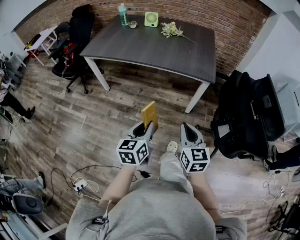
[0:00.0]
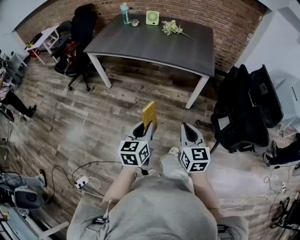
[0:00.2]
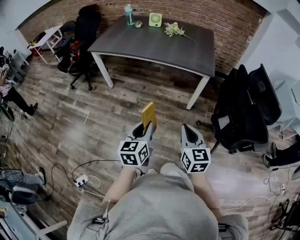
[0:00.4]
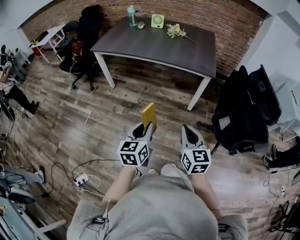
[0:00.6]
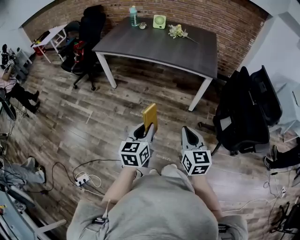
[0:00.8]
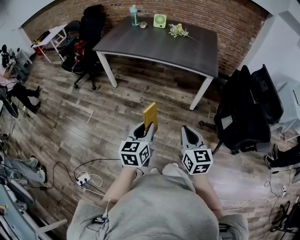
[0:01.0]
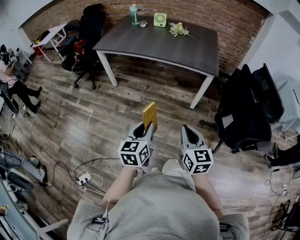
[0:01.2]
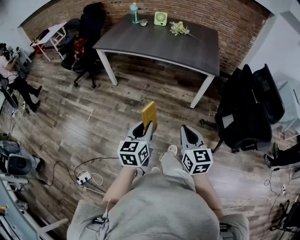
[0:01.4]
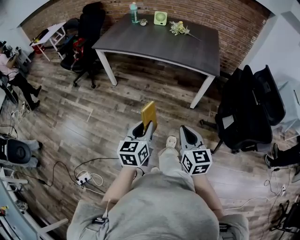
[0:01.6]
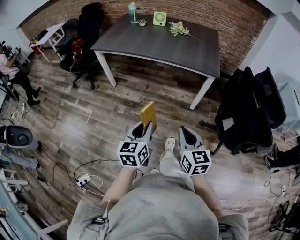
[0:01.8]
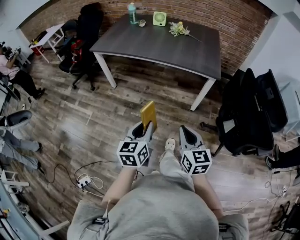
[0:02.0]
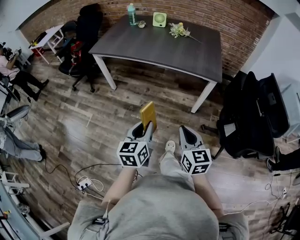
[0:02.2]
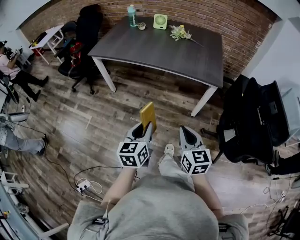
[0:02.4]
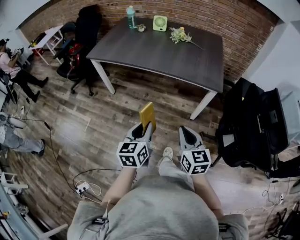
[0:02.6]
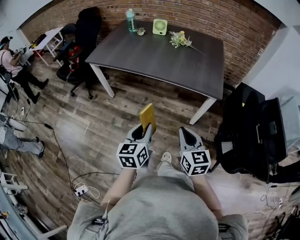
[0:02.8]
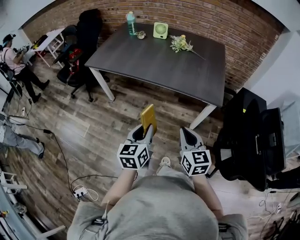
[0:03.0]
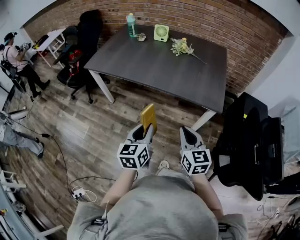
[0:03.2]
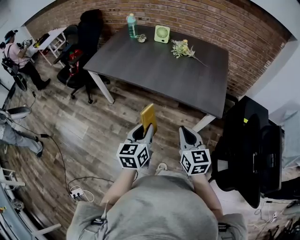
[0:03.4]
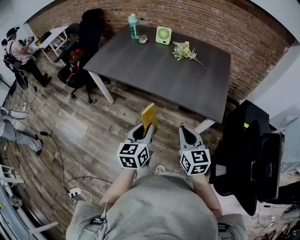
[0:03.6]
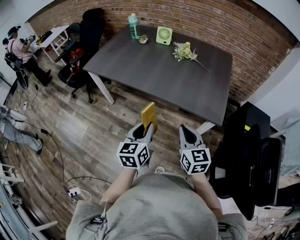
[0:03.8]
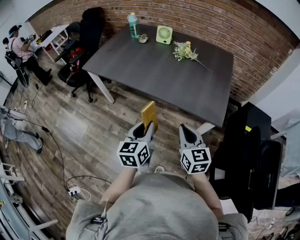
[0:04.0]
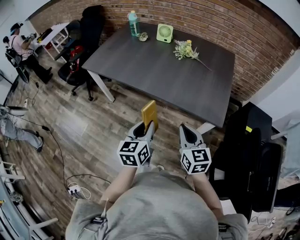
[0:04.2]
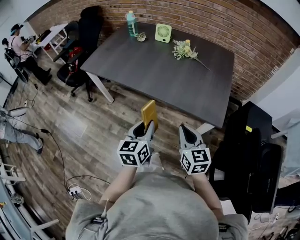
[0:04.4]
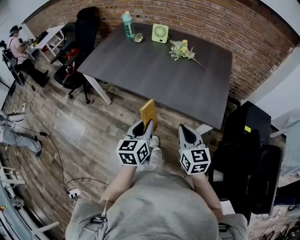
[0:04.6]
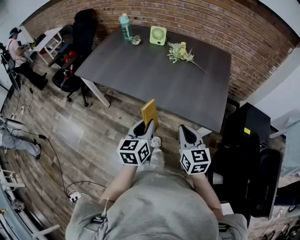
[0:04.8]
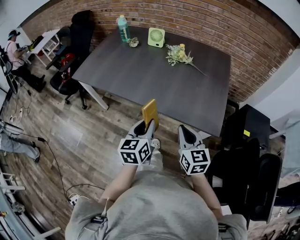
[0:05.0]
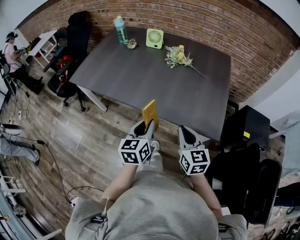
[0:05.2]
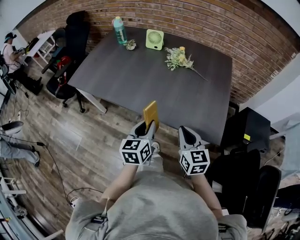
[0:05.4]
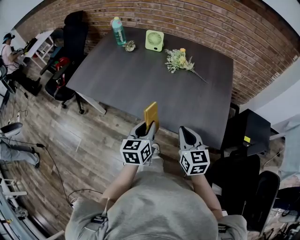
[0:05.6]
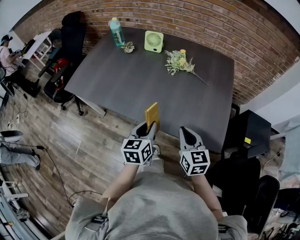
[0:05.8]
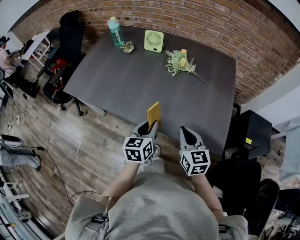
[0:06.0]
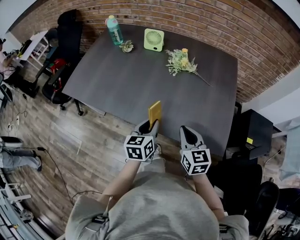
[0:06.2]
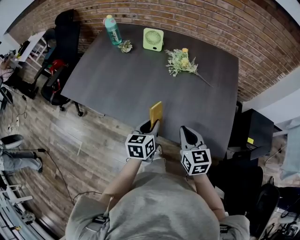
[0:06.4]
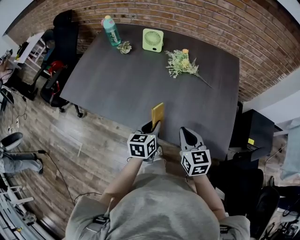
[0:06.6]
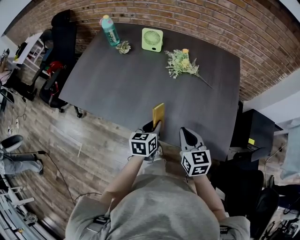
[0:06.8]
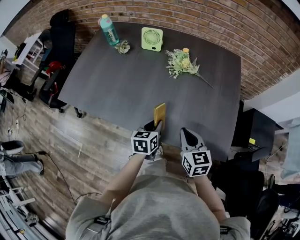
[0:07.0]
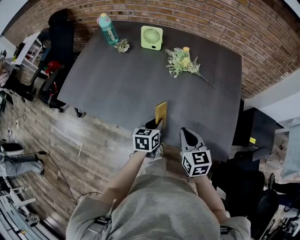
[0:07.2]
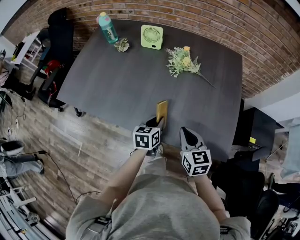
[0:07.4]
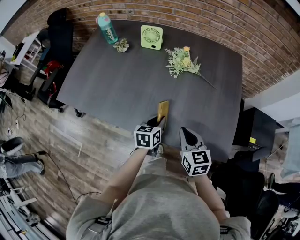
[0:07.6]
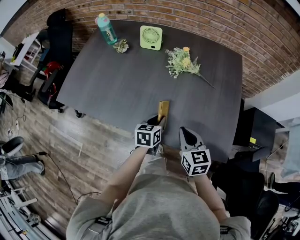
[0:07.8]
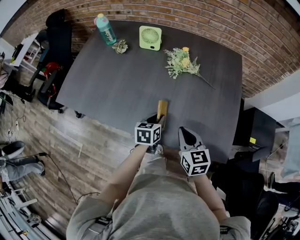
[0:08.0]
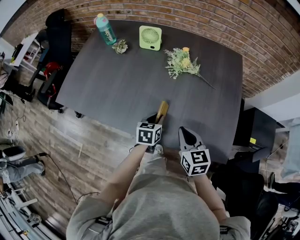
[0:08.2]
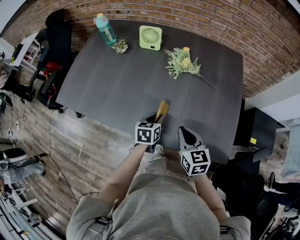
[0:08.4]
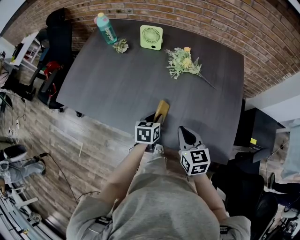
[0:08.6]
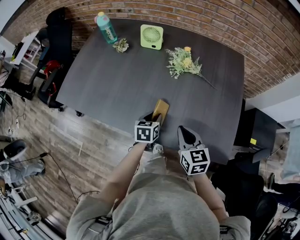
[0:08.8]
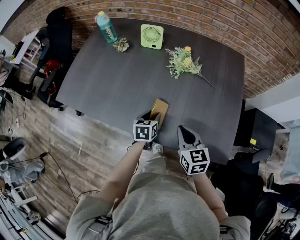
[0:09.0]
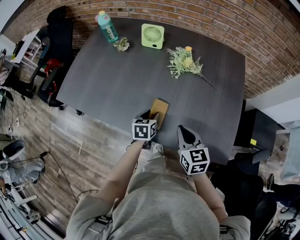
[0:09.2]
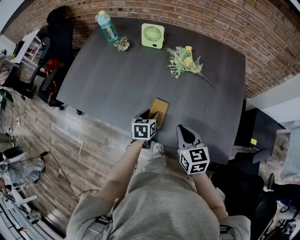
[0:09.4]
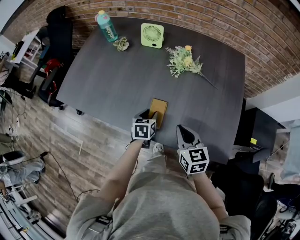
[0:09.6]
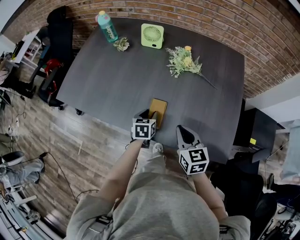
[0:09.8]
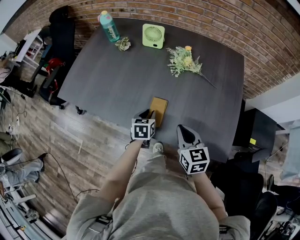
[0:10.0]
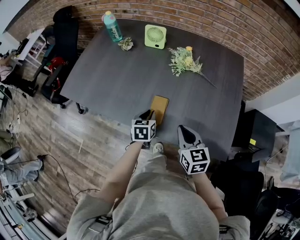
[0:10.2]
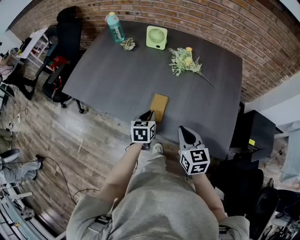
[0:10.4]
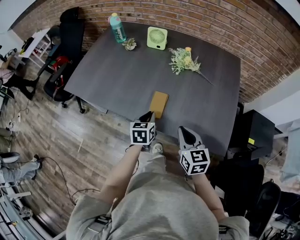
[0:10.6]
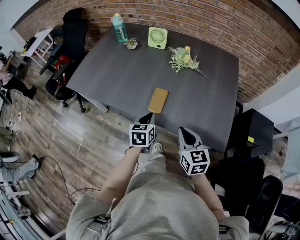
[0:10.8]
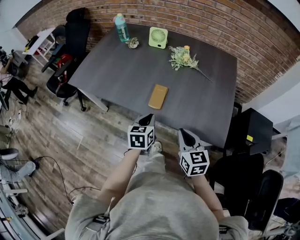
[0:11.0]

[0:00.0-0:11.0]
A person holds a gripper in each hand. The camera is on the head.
0:00.0 to 0:01.6: Both grippers move backward and to the left, roughly 15 cm.
0:01.6 to 0:03.2: The grippers both shift forward by about 25 cm.
0:03.2 to 0:04.8: Both grippers move forward and to the right, approximately 15 cm.
0:04.8 to 0:06.2: The grippers both shift forward by roughly 20 cm.
0:06.2 to 0:07.8: The right gripper moves forward, roughly 5 cm; the left gripper moves forward and downward, about 15 cm.
0:07.8 to 0:09.4: The left gripper is displaced to the left by some 5 cm, and opens its fingers.
0:09.4 to 0:11.0: The left gripper is displaced backward and upward by roughly 20 cm, and closes its fingers, while the right gripper heads backward, covering roughly 15 cm.

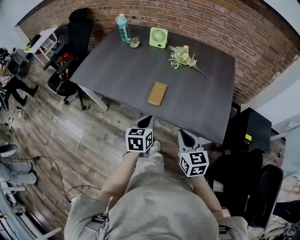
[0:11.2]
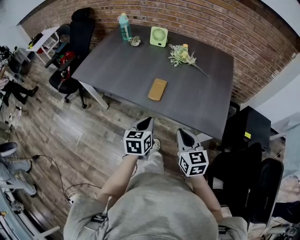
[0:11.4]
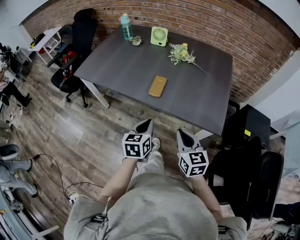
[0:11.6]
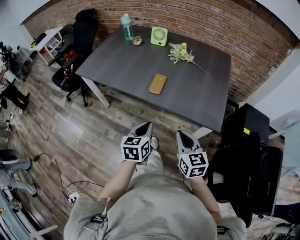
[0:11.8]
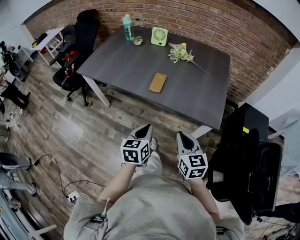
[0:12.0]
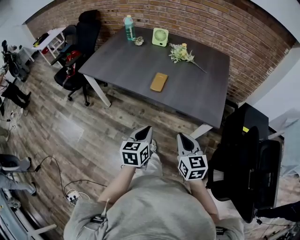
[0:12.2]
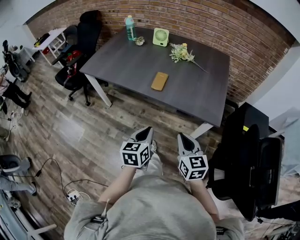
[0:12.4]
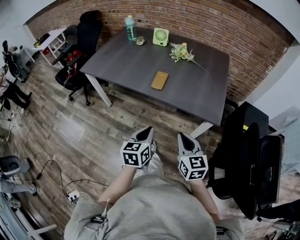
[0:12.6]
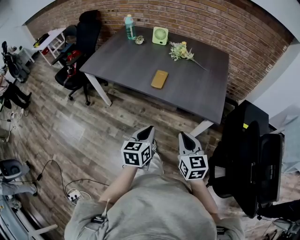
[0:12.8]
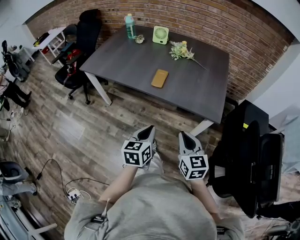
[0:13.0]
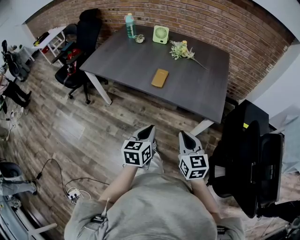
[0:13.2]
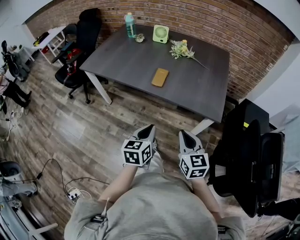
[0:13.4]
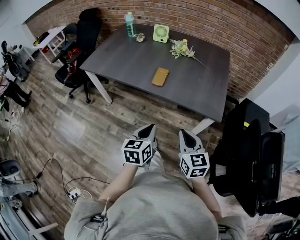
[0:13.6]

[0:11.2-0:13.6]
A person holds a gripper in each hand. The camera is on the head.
0:11.2 to 0:12.4: Both grippers move backward, about 15 cm.
0:12.4 to 0:13.6: The grippers move only a little.

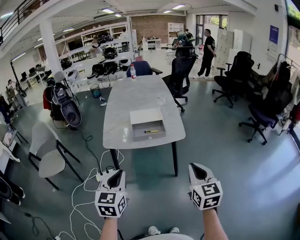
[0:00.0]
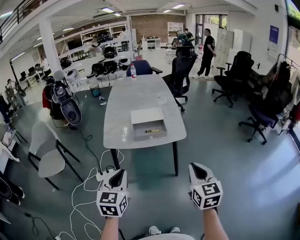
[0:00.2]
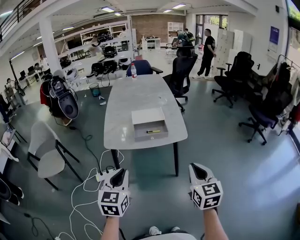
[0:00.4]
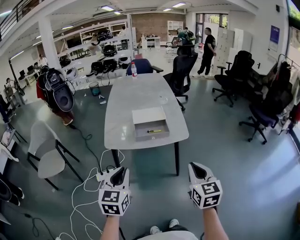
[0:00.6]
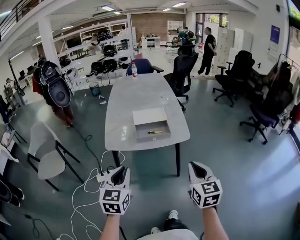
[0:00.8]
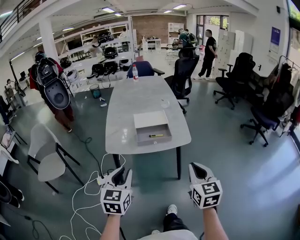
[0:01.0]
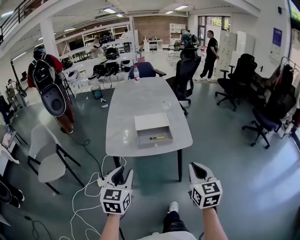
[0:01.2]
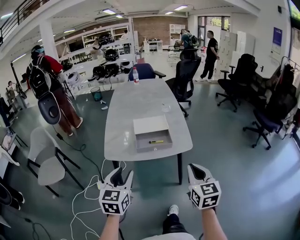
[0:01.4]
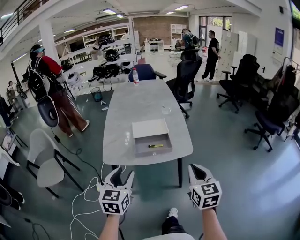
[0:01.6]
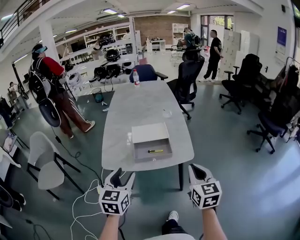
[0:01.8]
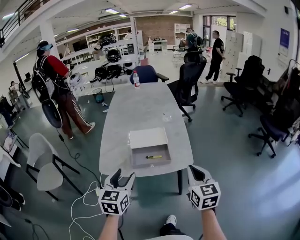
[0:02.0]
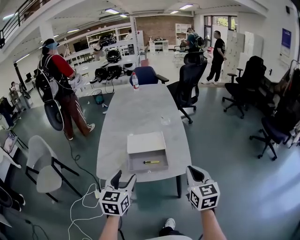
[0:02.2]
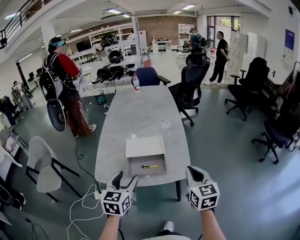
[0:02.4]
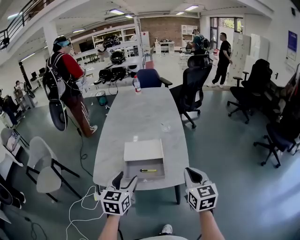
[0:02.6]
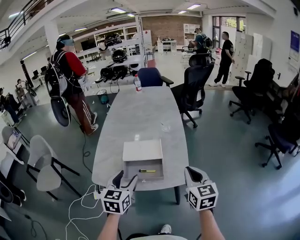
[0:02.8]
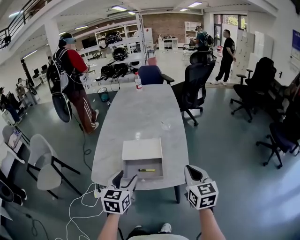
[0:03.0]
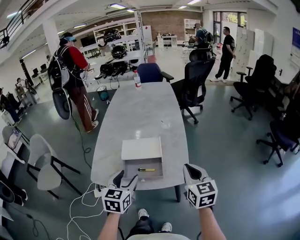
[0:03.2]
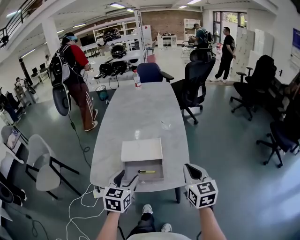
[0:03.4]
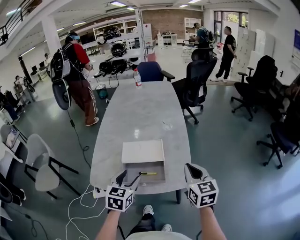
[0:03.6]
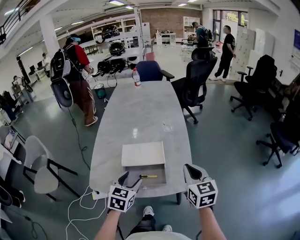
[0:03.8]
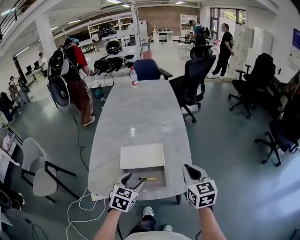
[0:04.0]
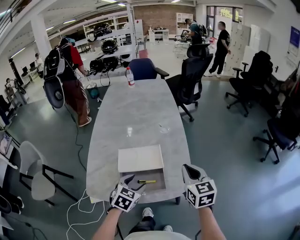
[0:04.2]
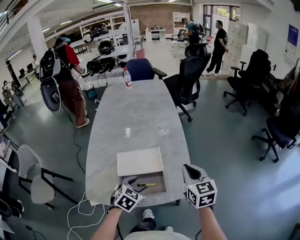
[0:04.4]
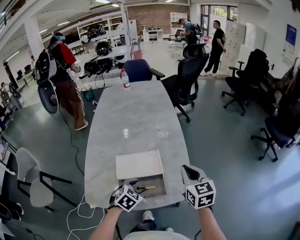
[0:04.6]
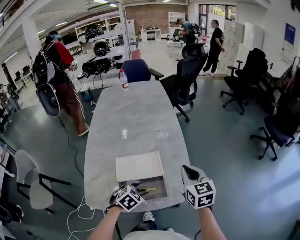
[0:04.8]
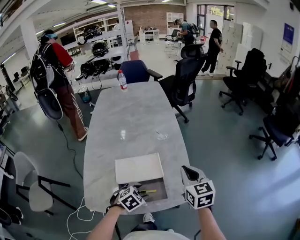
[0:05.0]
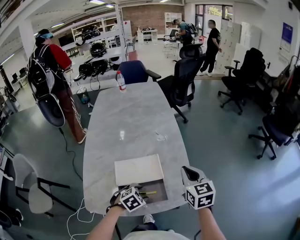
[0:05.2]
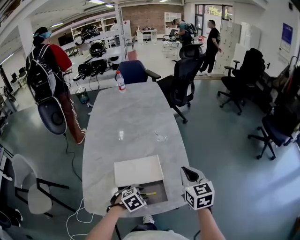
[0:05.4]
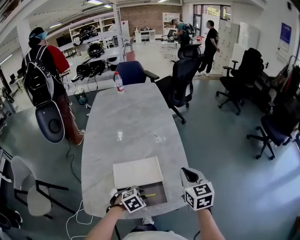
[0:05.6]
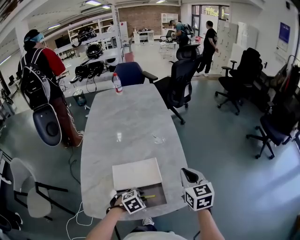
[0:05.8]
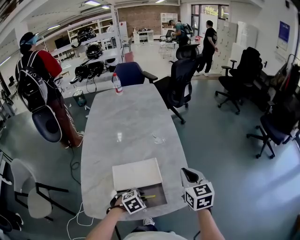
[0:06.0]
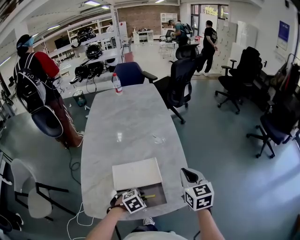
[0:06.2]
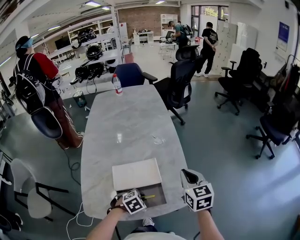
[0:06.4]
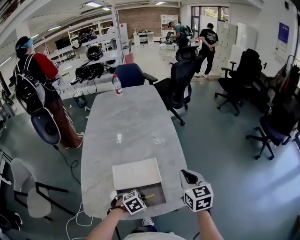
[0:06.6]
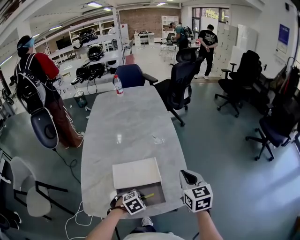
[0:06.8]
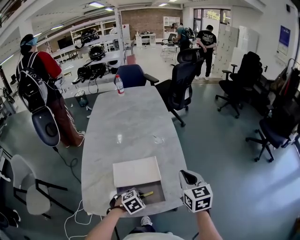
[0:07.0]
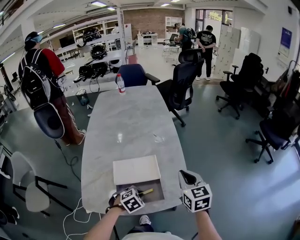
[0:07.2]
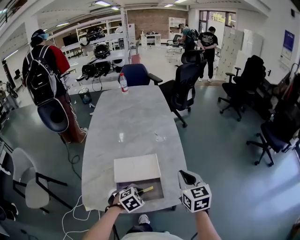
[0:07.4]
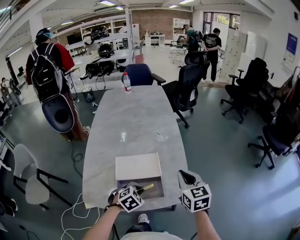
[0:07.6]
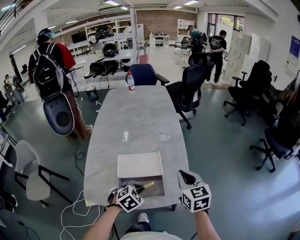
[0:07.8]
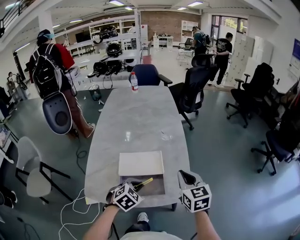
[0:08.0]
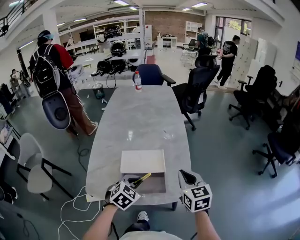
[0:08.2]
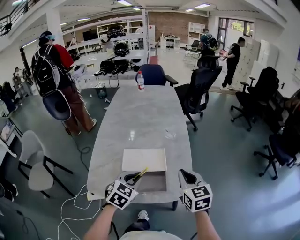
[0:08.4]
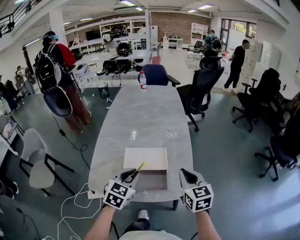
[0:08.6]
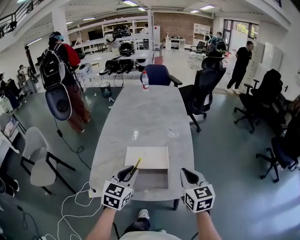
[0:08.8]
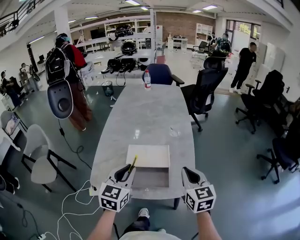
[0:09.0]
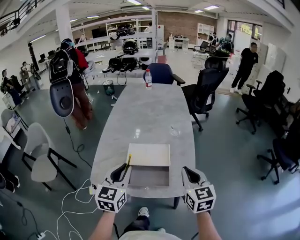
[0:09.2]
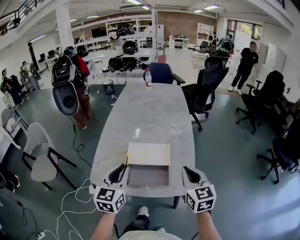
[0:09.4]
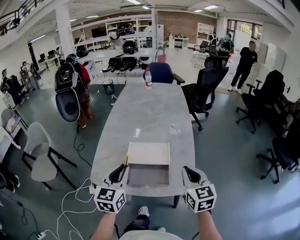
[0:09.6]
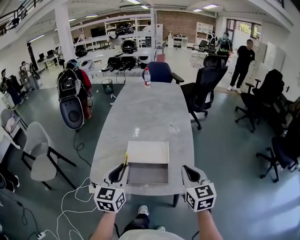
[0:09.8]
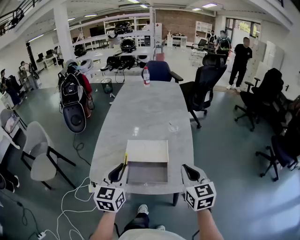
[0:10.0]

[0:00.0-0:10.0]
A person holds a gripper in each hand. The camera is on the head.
0:00.0 to 0:01.4: The two grippers go about 10 cm forward. The left gripper opens.
0:01.4 to 0:02.8: The left gripper travels forward and to the right by some 25 cm, and opens. The right gripper is displaced forward by some 25 cm.
0:02.8 to 0:04.2: The right gripper goes some 10 cm forward. Meanwhile the left gripper travels downward and forward by roughly 15 cm, and rotates approximately 30 degrees.
0:04.2 to 0:05.8: The left gripper moves downward, some 10 cm, and turns by some 40 degrees. The right gripper shifts about 5 cm forward.
0:05.8 to 0:07.2: The left gripper closes up.
0:07.2 to 0:08.6: The left gripper moves upward, roughly 15 cm, and tilts its fingers about 40 degrees upward. The right gripper travels backward by roughly 5 cm.
0:08.6 to 0:10.0: The left gripper goes roughly 5 cm to the left, and turns by approximately 30 degrees.
